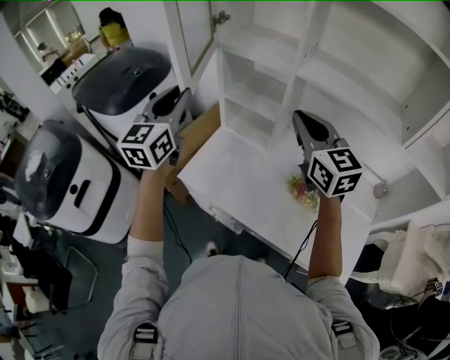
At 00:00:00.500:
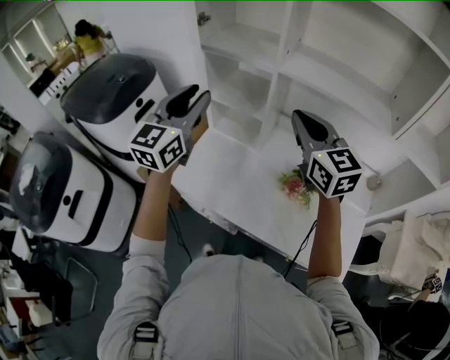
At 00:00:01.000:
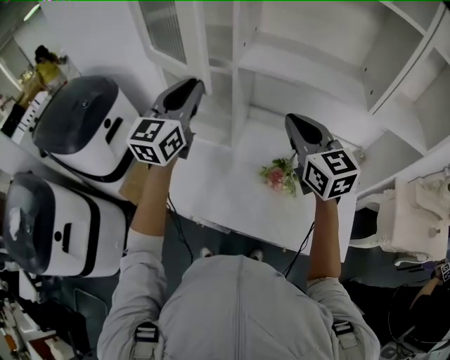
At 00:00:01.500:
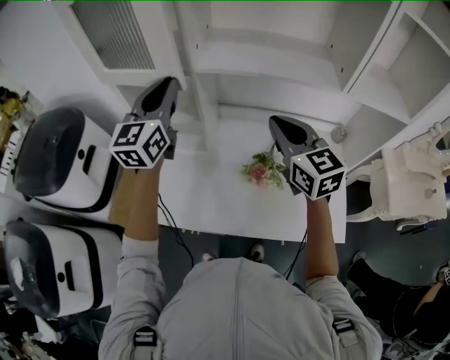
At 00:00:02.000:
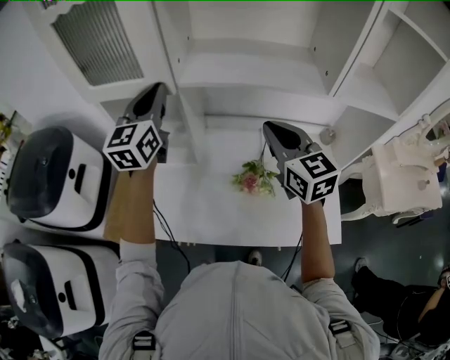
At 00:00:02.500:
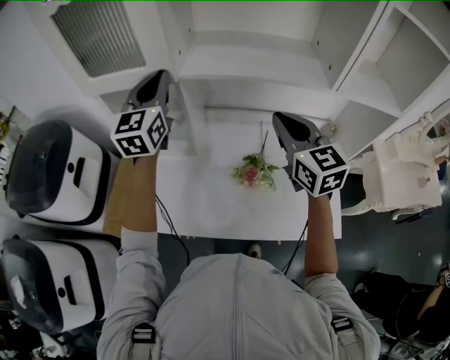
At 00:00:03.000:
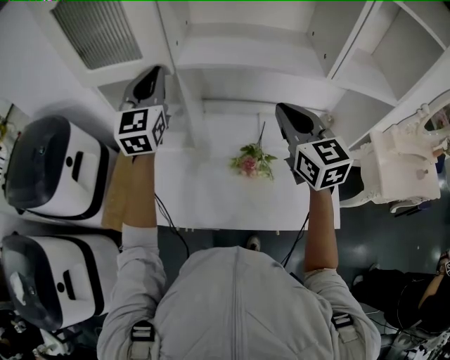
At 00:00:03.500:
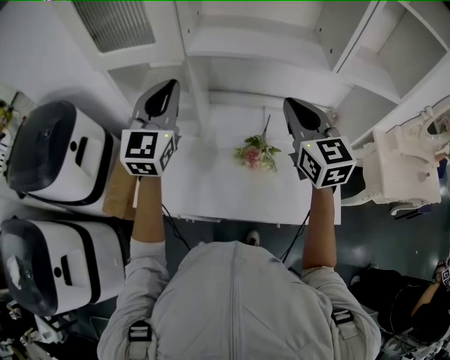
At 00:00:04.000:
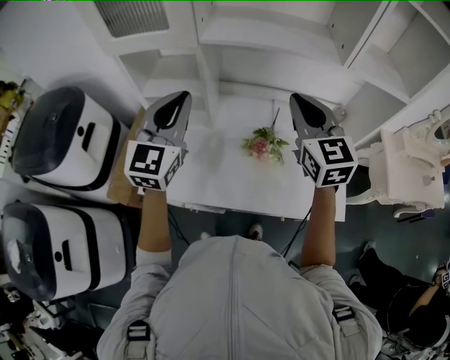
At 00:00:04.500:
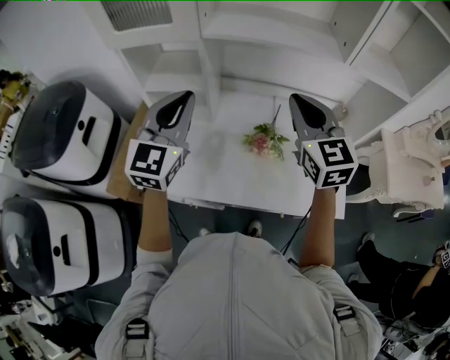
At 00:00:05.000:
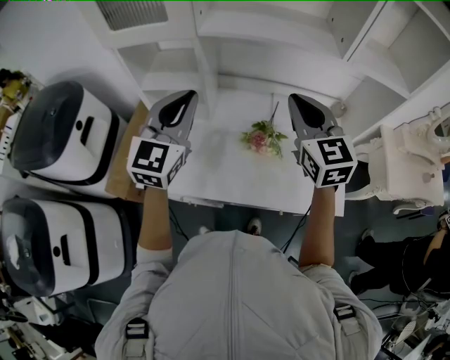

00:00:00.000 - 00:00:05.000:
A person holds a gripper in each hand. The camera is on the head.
00:00:00.000 - 00:00:02.500: The right gripper heads to the right, covering roughly 20 cm, and changes its angle by about 30 degrees, while the left gripper moves to the right and forward, roughly 30 cm.
00:00:02.500 - 00:00:05.000: The left gripper is displaced backward by some 20 cm, while the right gripper travels backward by roughly 5 cm.

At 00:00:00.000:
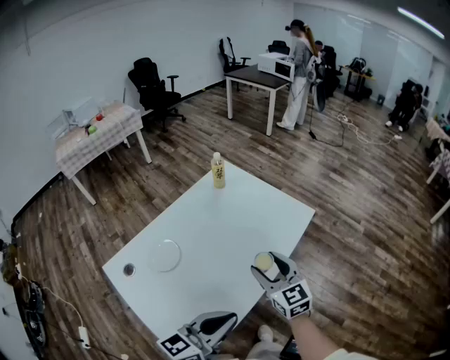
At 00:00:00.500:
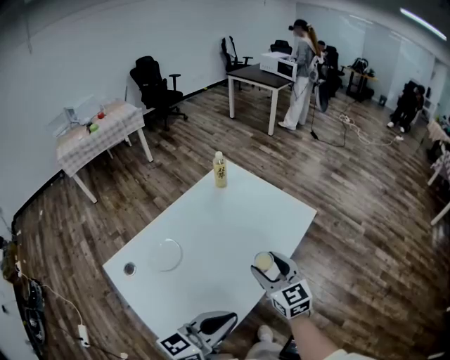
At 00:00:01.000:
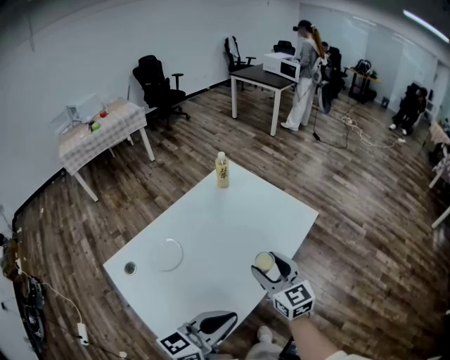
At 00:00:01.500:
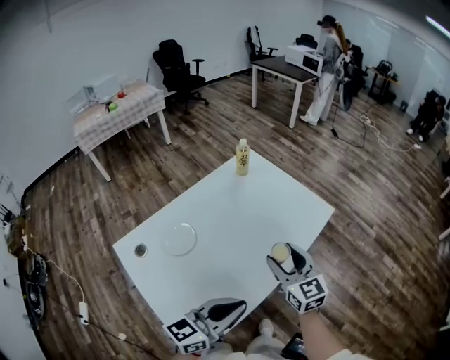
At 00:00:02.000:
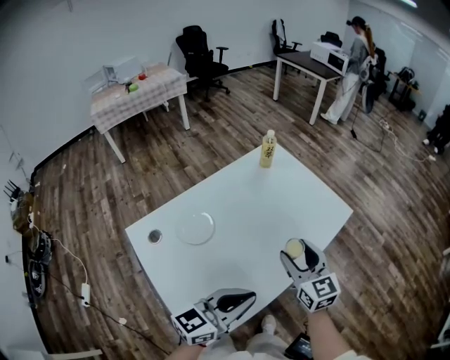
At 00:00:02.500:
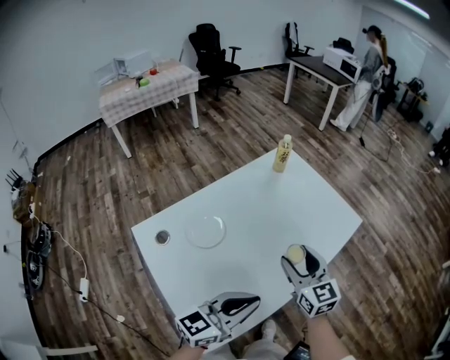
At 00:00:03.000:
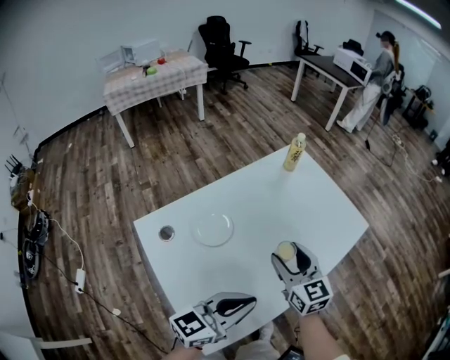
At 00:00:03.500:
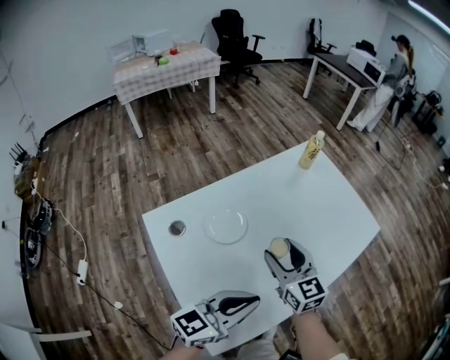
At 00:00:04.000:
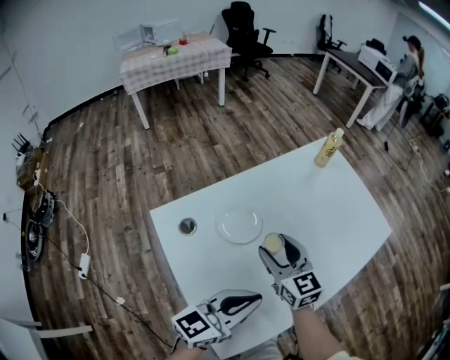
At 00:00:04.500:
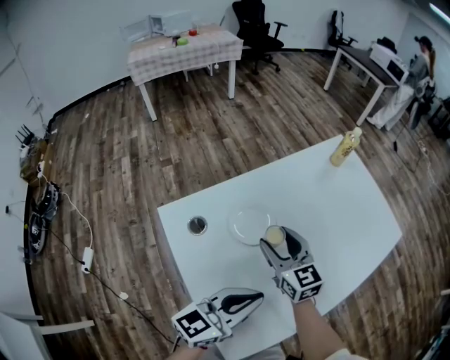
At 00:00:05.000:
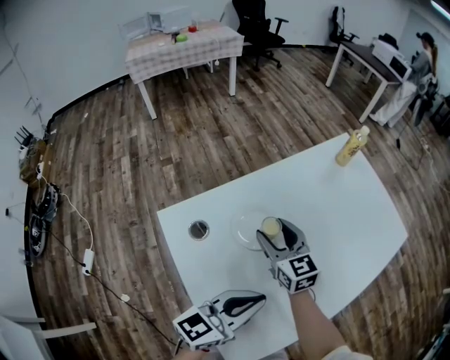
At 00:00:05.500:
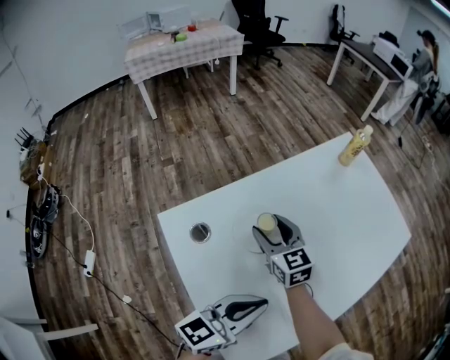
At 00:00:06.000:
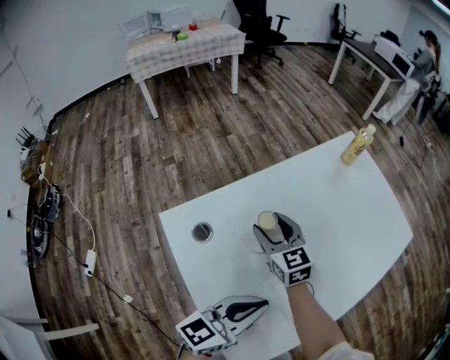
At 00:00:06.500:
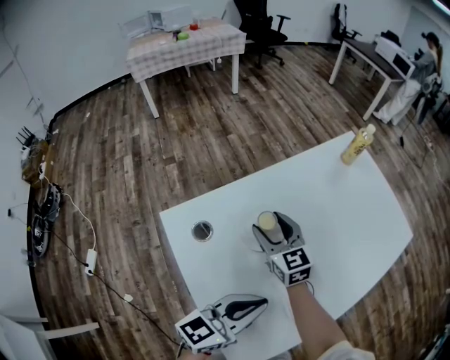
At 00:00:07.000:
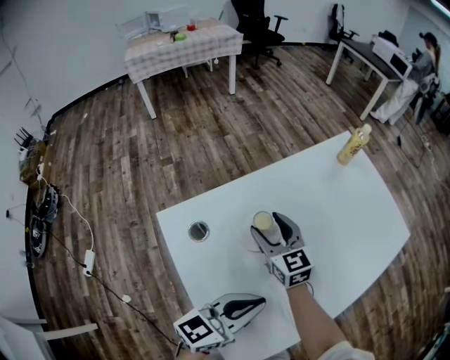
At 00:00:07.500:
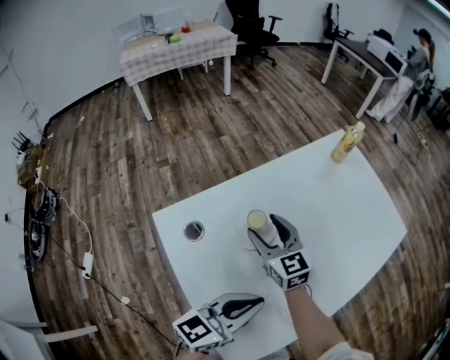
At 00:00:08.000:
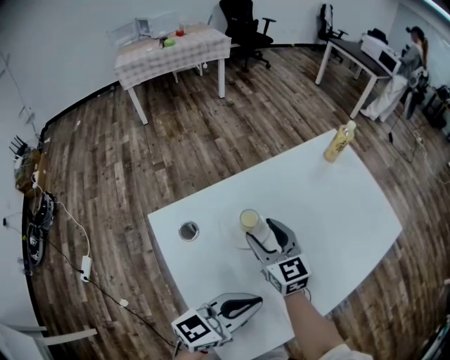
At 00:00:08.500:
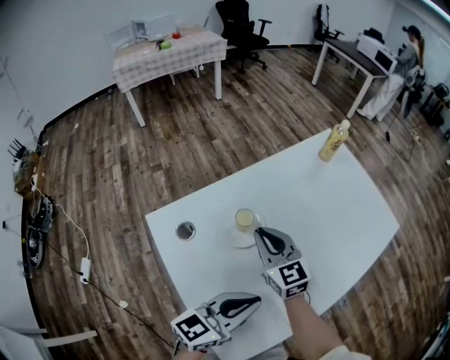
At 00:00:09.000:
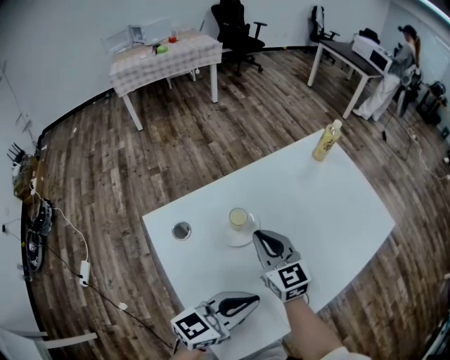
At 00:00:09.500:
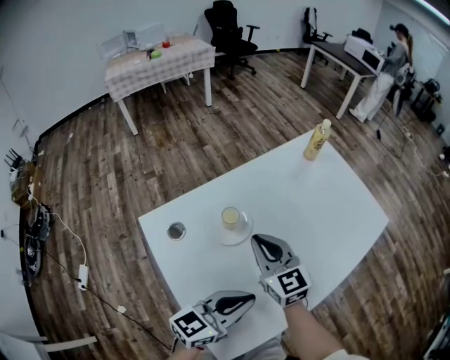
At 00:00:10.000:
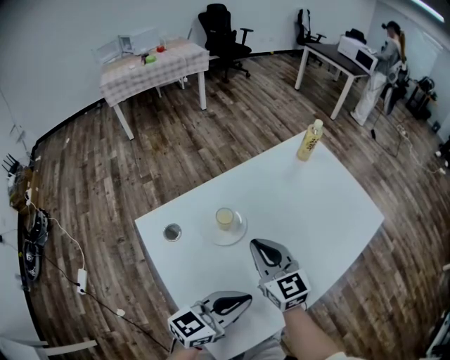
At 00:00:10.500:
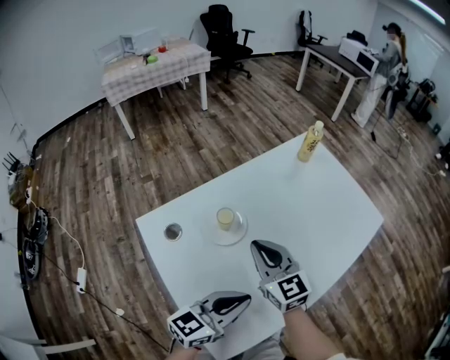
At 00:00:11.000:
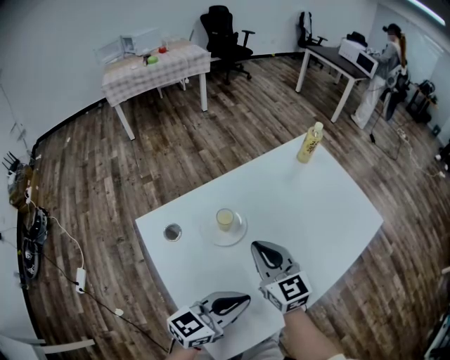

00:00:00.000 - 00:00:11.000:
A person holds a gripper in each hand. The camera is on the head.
00:00:00.000 - 00:00:02.000: The grippers make only small movements.
00:00:02.000 - 00:00:03.500: The right gripper heads to the left, covering some 15 cm. Meanwhile the left gripper travels to the left by approximately 10 cm.
00:00:03.500 - 00:00:05.500: The left gripper shifts roughly 10 cm to the left and downward, while the right gripper shifts about 20 cm to the left, downward and forward.
00:00:05.500 - 00:00:07.500: The grippers stay close to where they were, moving slightly.
00:00:07.500 - 00:00:09.000: The right gripper changes place by roughly 5 cm, and closes.
00:00:09.000 - 00:00:11.000: The right gripper ends up about 5 cm from where it was.

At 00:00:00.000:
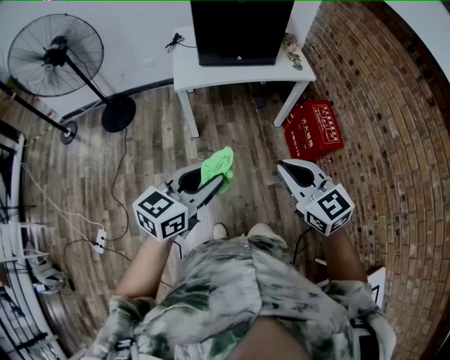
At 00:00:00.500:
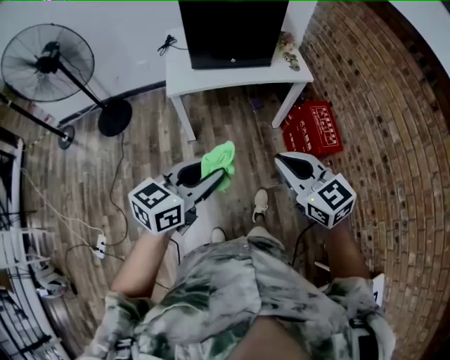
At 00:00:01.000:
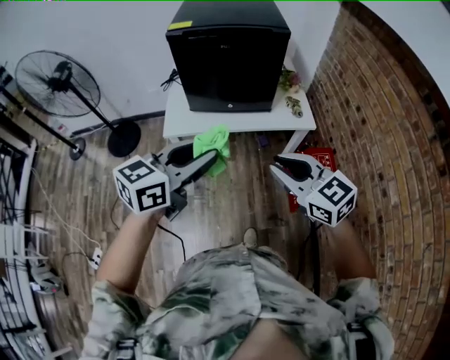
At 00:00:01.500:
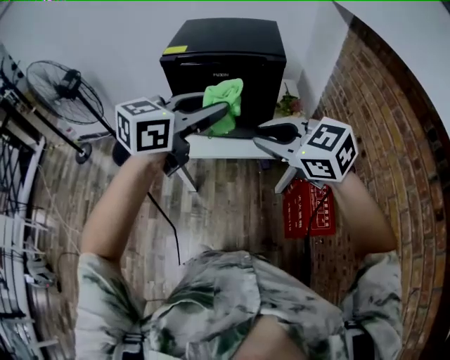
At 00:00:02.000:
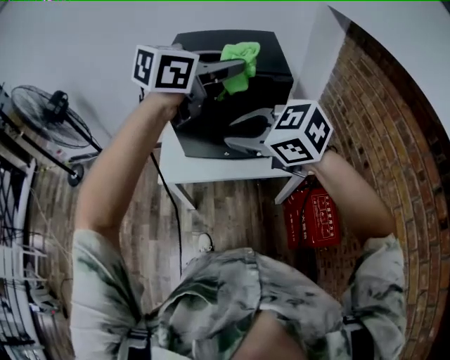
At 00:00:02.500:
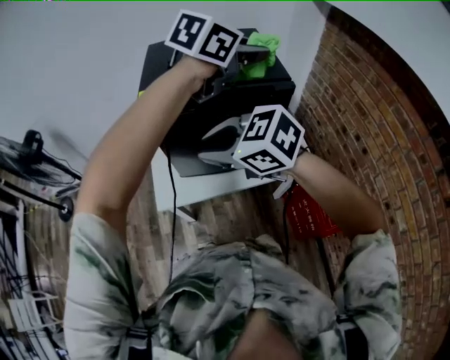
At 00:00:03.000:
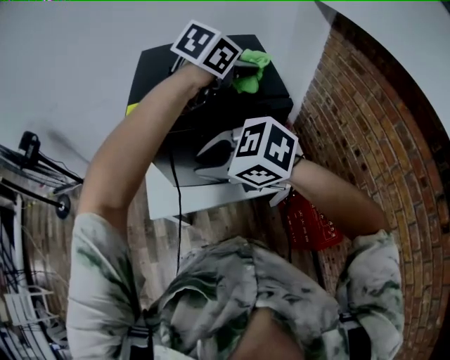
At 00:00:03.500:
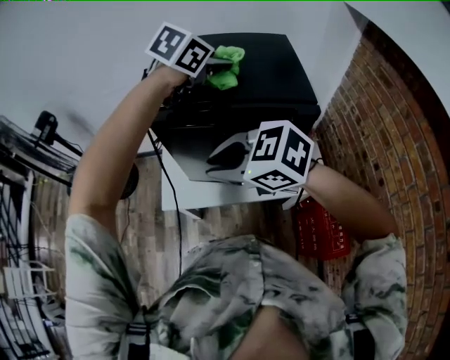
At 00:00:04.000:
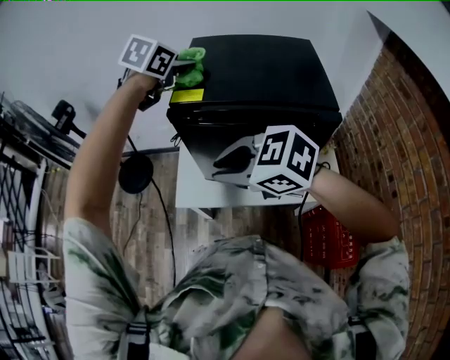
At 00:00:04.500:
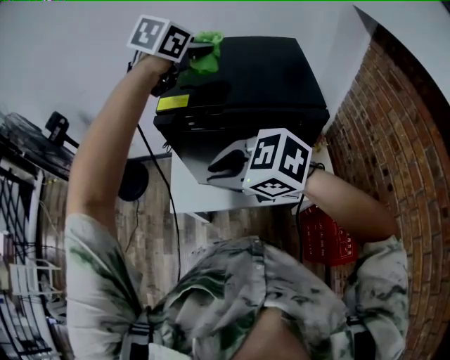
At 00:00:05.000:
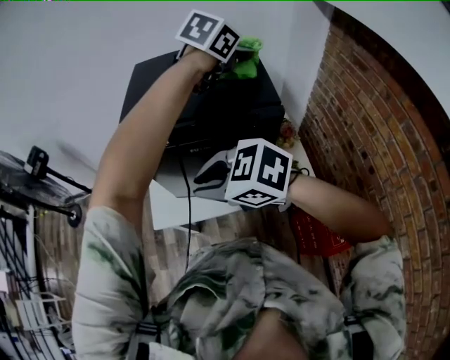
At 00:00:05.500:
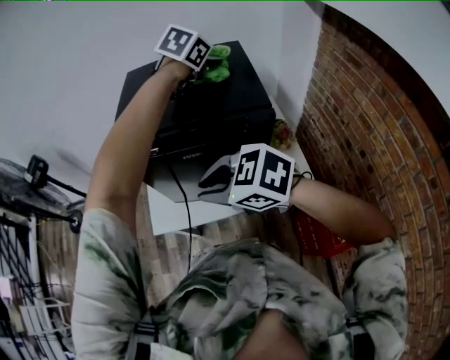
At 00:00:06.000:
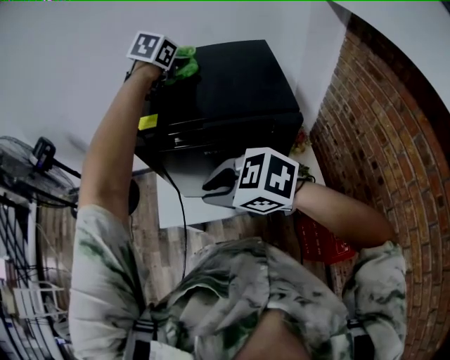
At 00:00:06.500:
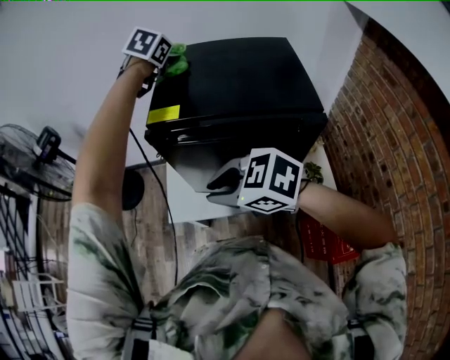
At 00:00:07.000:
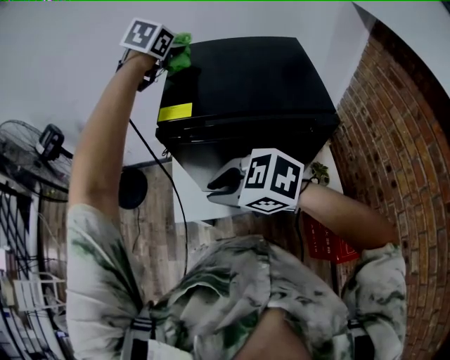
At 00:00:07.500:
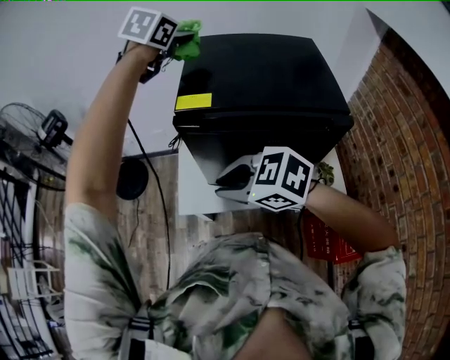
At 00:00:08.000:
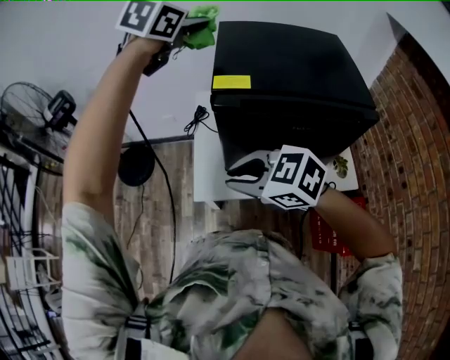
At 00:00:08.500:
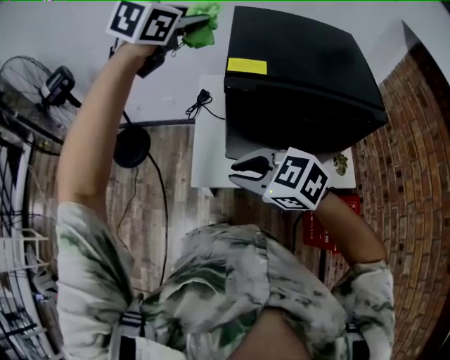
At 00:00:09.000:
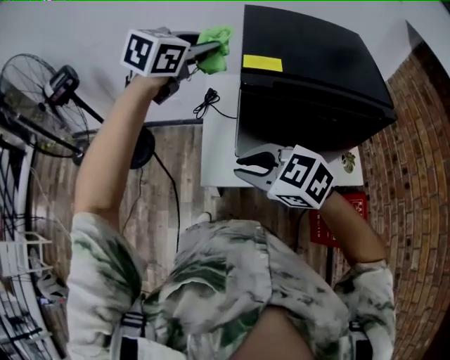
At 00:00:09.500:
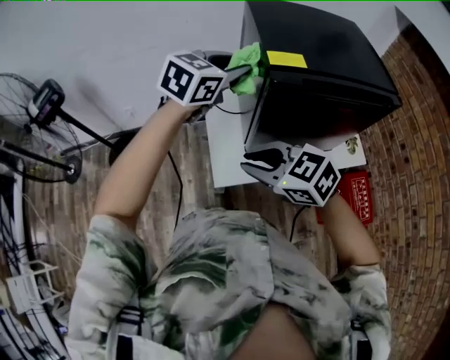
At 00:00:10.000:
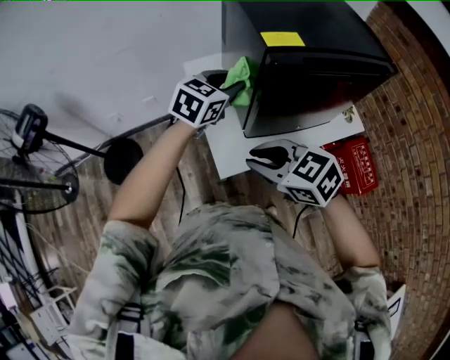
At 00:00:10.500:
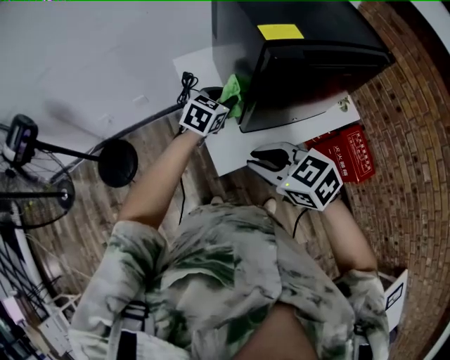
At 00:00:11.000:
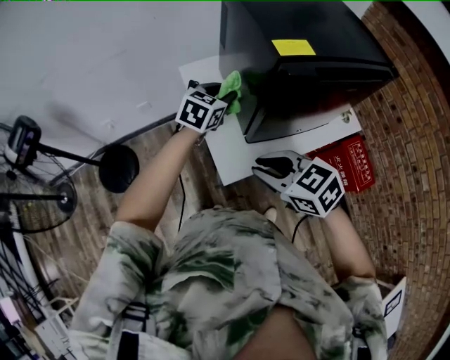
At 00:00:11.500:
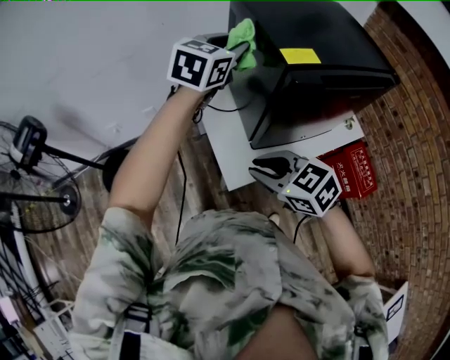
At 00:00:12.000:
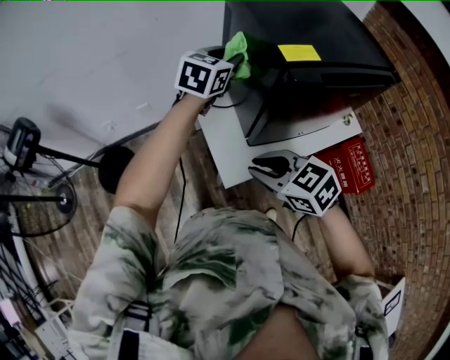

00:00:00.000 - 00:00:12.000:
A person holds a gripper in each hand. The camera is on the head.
00:00:00.000 - 00:00:02.000: Both grippers are carried forward, approximately 50 cm. The left gripper moves upward, about 30 cm; the right gripper rotates some 30 degrees.
00:00:02.000 - 00:00:04.000: The left gripper moves approximately 35 cm, and changes its angle by roughly 40 degrees, while the right gripper shifts by roughly 15 cm.
00:00:06.000 - 00:00:08.000: The right gripper moves to the left and forward, some 15 cm. Meanwhile the left gripper shifts some 20 cm to the left.
00:00:08.000 - 00:00:10.000: The left gripper shifts roughly 25 cm downward, and turns by roughly 30 degrees. Meanwhile the right gripper ends up some 10 cm from where it was, and rotates approximately 30 degrees.
00:00:10.000 - 00:00:12.000: The left gripper moves up and down over roughly 20 cm, changing direction 2 times.
